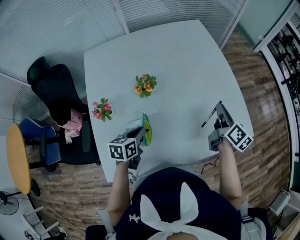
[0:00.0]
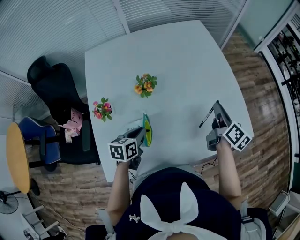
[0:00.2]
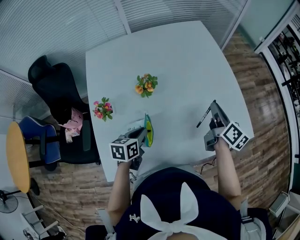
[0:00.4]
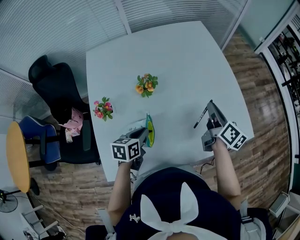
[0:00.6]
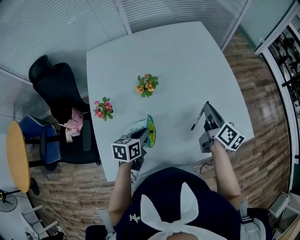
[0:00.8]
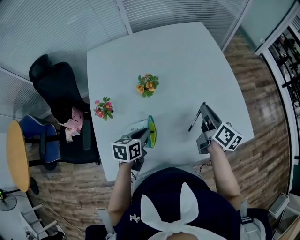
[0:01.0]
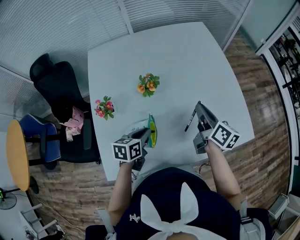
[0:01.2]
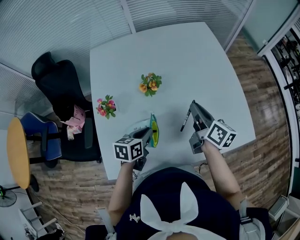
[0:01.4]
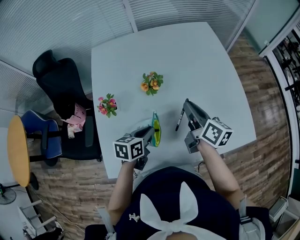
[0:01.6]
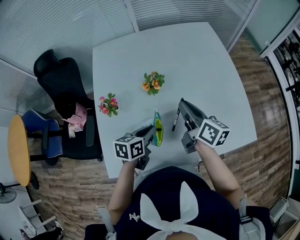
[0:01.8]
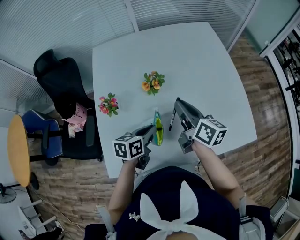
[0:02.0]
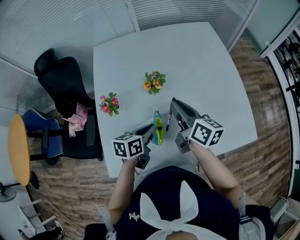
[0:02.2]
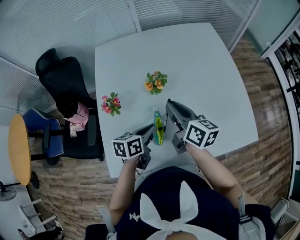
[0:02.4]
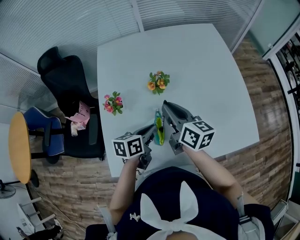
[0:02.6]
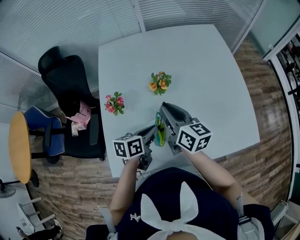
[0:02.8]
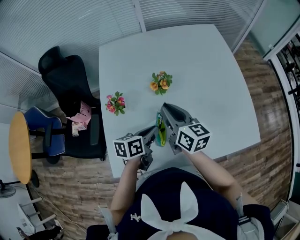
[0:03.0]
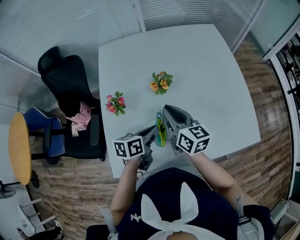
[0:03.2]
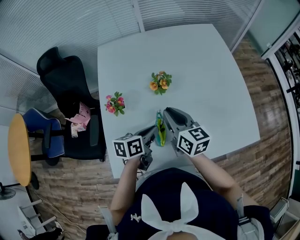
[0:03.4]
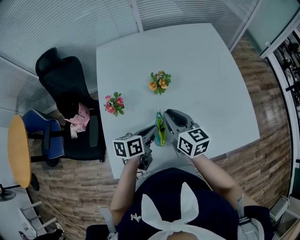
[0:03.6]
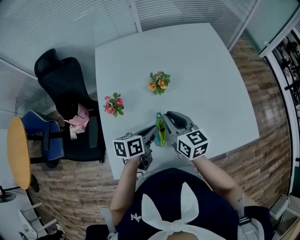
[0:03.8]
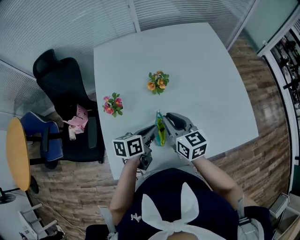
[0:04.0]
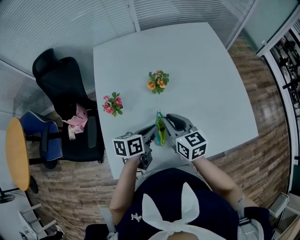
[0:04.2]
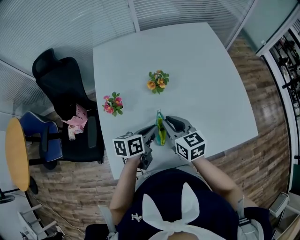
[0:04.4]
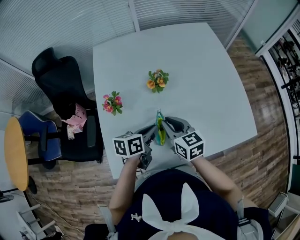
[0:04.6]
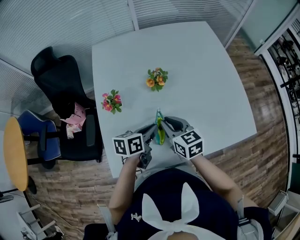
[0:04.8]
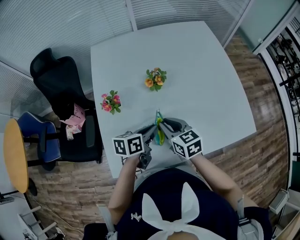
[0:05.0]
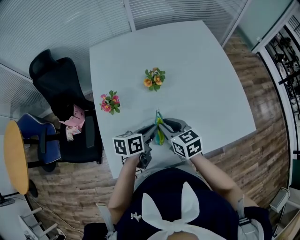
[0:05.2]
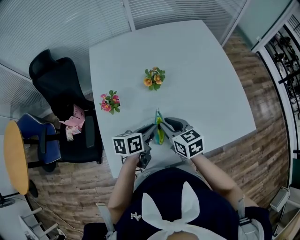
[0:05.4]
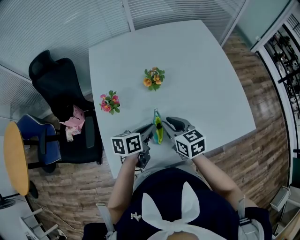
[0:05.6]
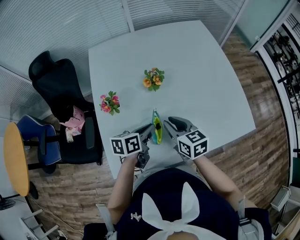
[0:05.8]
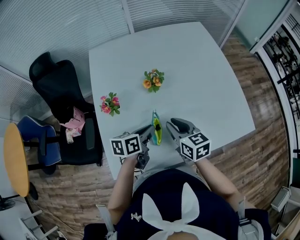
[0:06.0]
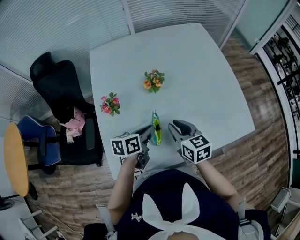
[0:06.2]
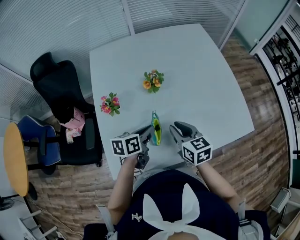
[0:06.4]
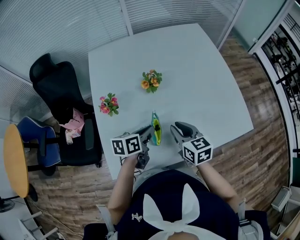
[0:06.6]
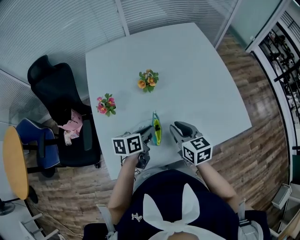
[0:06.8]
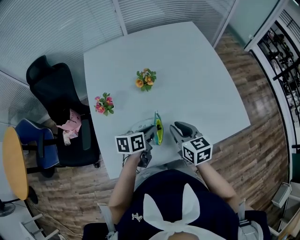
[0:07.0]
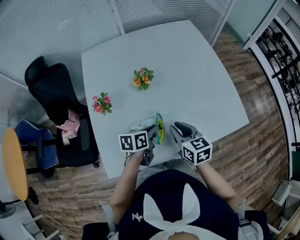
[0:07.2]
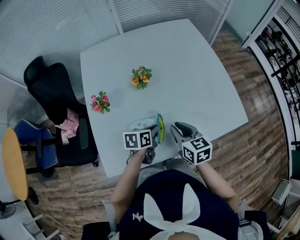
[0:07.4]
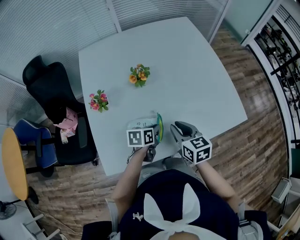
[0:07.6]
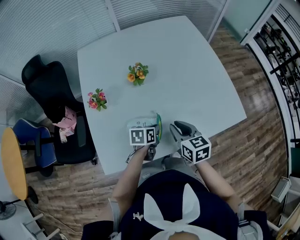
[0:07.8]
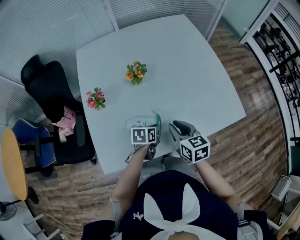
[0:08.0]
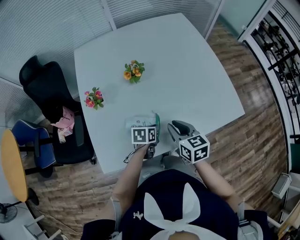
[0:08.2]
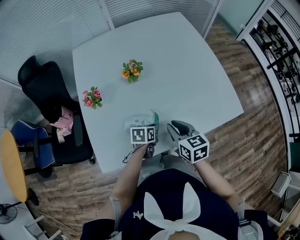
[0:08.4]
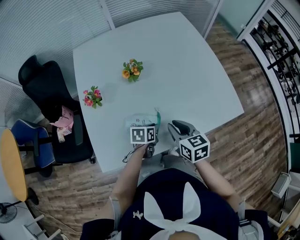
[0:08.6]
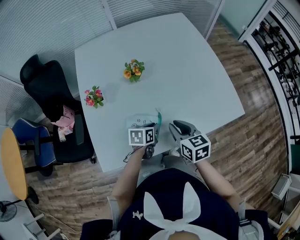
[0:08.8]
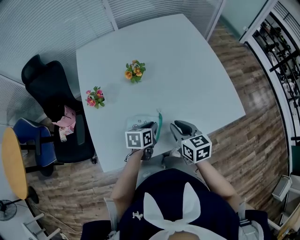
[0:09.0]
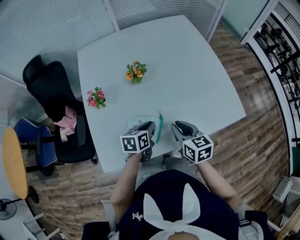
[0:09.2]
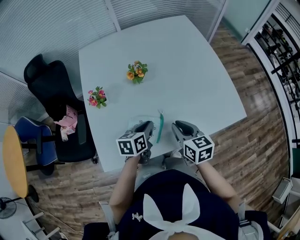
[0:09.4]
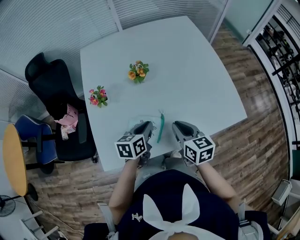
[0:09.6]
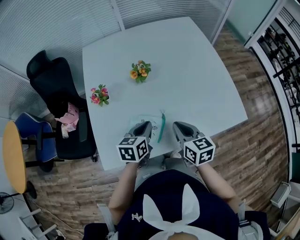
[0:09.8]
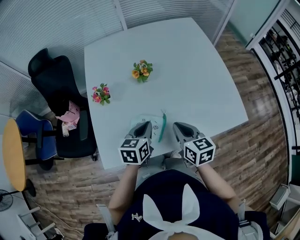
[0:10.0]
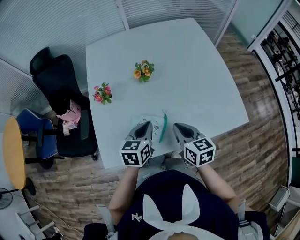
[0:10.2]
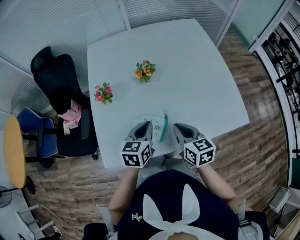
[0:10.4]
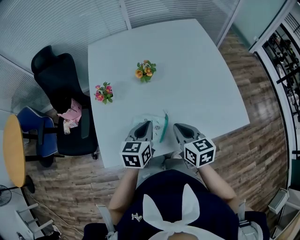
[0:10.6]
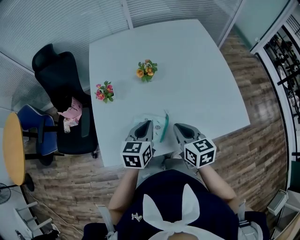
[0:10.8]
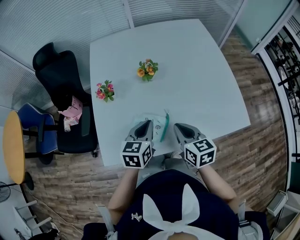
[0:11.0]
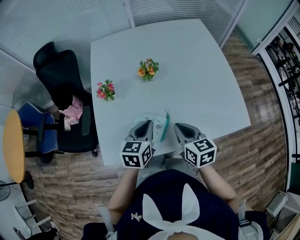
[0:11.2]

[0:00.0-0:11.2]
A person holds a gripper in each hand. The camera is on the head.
0:00.0 to 0:01.6: The right gripper is displaced to the left by approximately 15 cm, and rotates about 20 degrees.
0:01.6 to 0:03.2: The right gripper heads to the left, covering roughly 10 cm, and changes its angle by some 20 degrees.
0:03.2 to 0:04.8: The right gripper heads downward and backward, covering roughly 10 cm.
0:04.8 to 0:06.4: The right gripper shifts roughly 5 cm to the right.
0:06.4 to 0:08.0: The left gripper goes approximately 15 cm downward and to the right. Meanwhile the right gripper goes roughly 5 cm to the right.
0:08.0 to 0:09.6: The left gripper goes about 10 cm upward.
0:09.6 to 0:11.2: The left gripper goes approximately 5 cm upward.

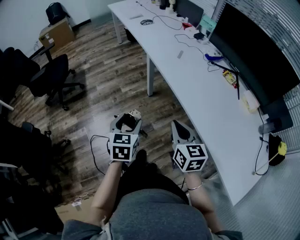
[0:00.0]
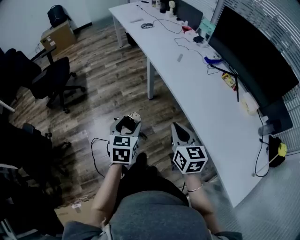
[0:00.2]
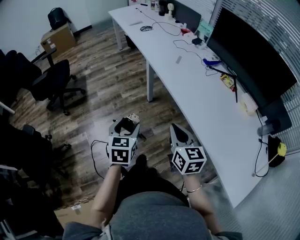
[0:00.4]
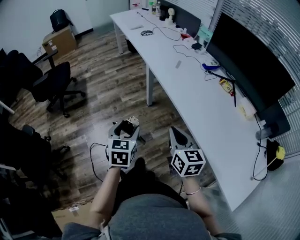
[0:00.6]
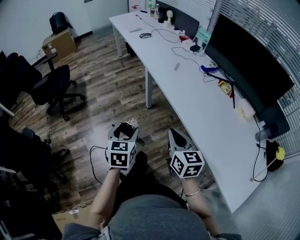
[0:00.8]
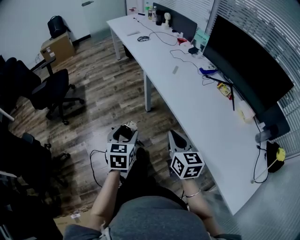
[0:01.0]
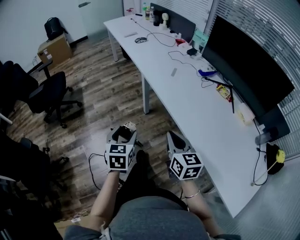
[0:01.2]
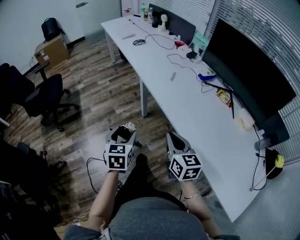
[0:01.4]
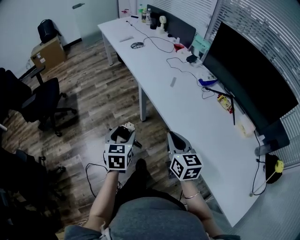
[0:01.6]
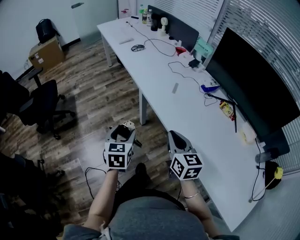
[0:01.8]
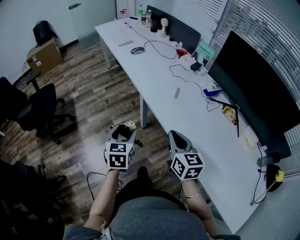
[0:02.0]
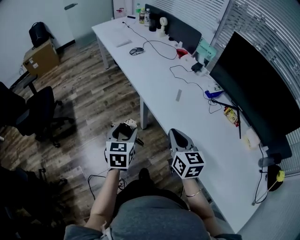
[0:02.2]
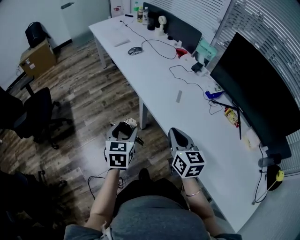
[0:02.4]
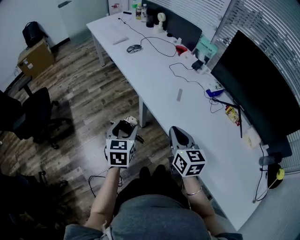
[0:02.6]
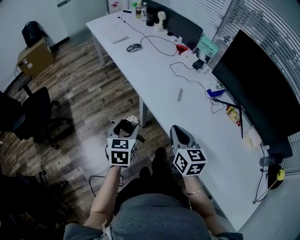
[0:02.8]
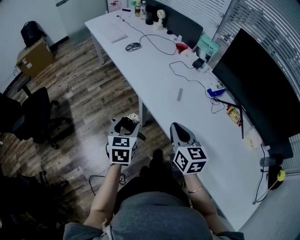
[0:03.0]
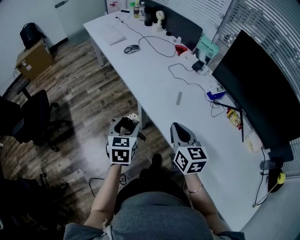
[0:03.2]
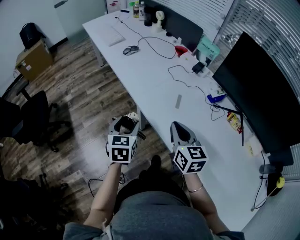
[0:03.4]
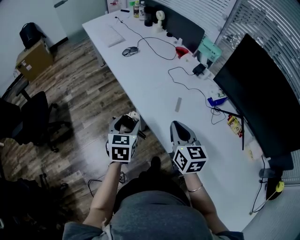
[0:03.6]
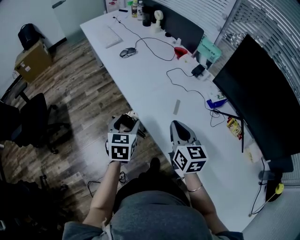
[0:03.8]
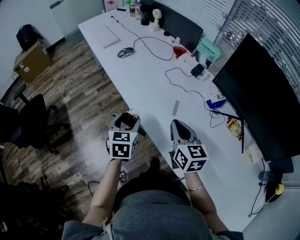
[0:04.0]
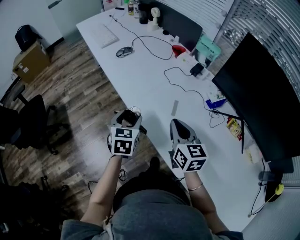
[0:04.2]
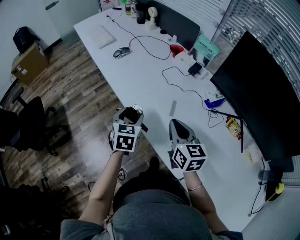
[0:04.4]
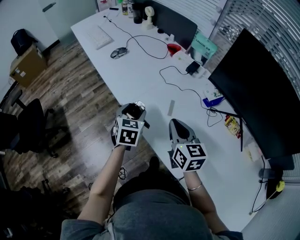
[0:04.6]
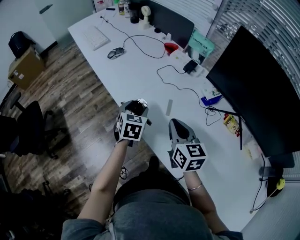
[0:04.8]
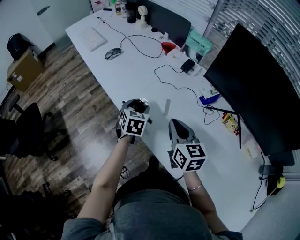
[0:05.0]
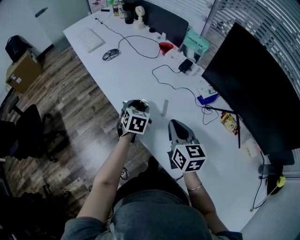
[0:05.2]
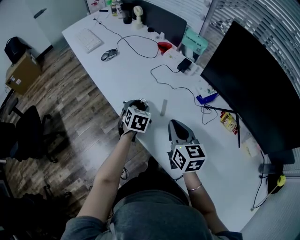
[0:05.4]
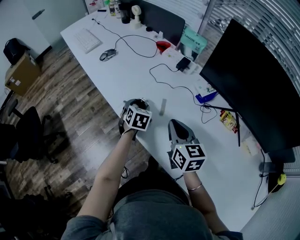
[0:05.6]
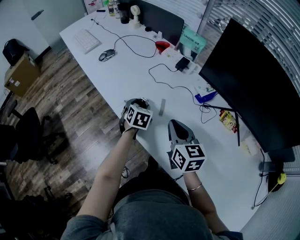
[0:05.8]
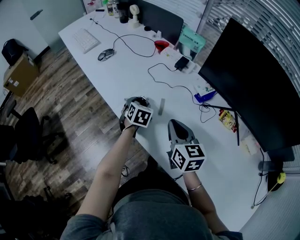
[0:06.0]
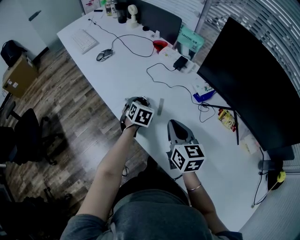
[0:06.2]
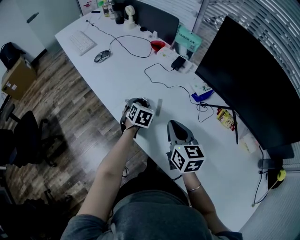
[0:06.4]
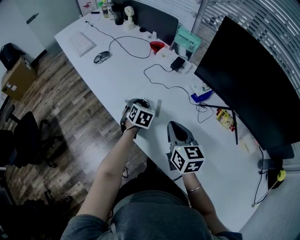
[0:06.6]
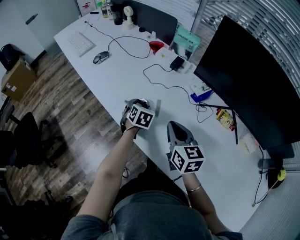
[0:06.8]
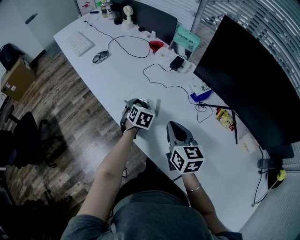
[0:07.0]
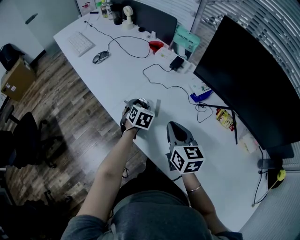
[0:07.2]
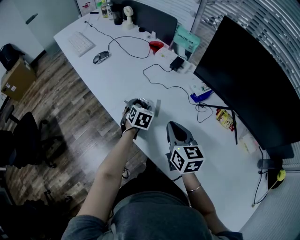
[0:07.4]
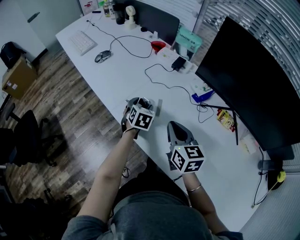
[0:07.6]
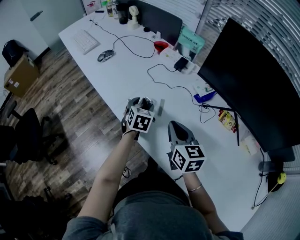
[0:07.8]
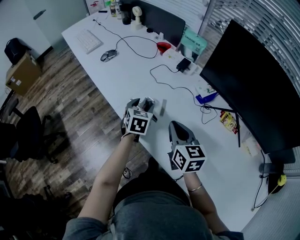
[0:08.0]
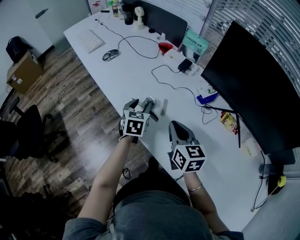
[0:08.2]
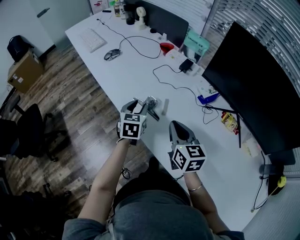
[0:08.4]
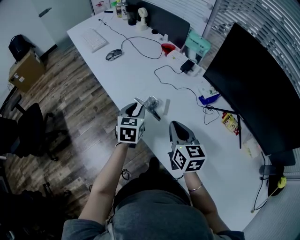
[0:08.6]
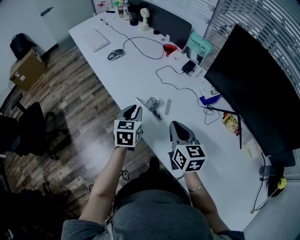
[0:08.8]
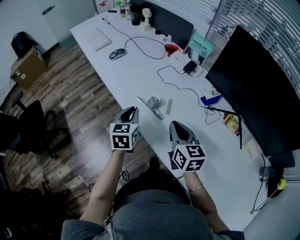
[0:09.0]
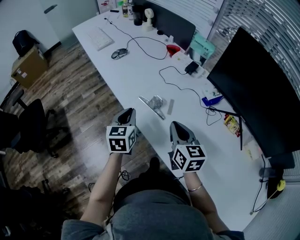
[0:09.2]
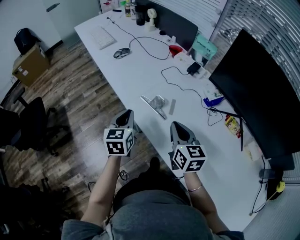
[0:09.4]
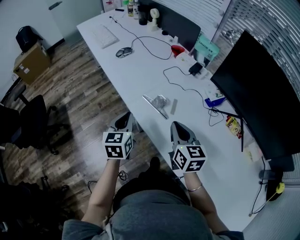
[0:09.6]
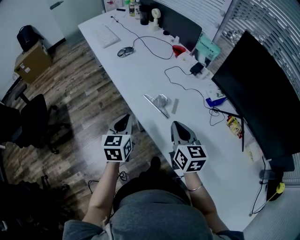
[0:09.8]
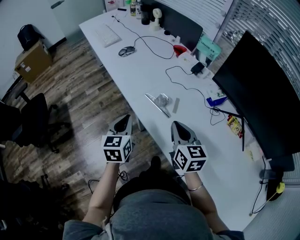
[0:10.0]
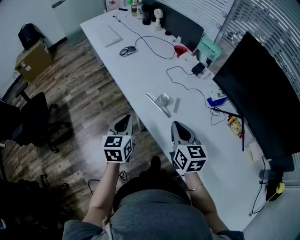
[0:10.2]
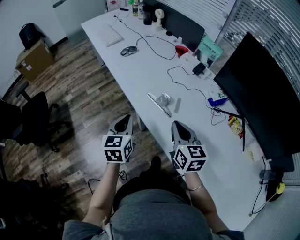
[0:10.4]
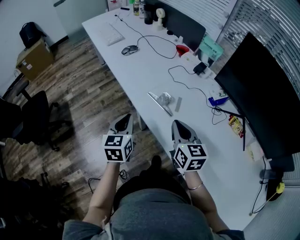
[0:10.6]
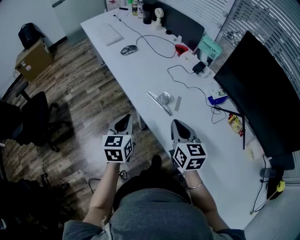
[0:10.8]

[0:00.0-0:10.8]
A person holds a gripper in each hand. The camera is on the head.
0:00.0 to 0:01.6: Both grippers travel together forward, approximately 15 cm.
0:01.6 to 0:03.0: The two grippers go about 20 cm forward.
0:03.0 to 0:04.6: Both grippers move forward and to the right, some 15 cm.
0:04.6 to 0:06.2: The left gripper travels to the right, downward and forward by about 15 cm.
0:06.2 to 0:07.8: The grippers make only small movements.
0:07.8 to 0:09.2: The left gripper is displaced to the left, backward and upward by roughly 15 cm, rotates some 20 degrees, and closes its fingers.
0:09.2 to 0:10.8: The left gripper goes approximately 5 cm backward.

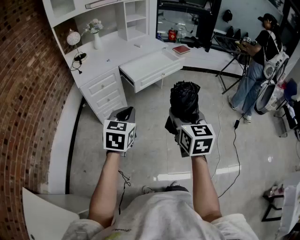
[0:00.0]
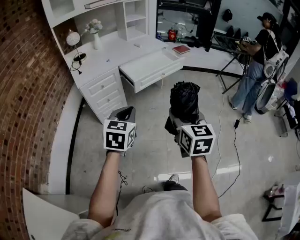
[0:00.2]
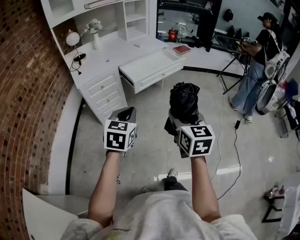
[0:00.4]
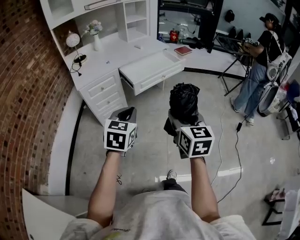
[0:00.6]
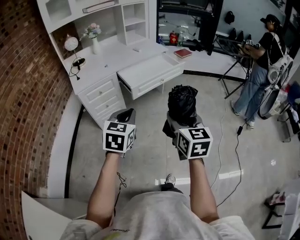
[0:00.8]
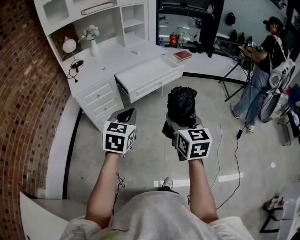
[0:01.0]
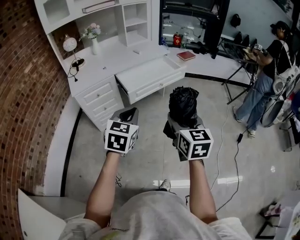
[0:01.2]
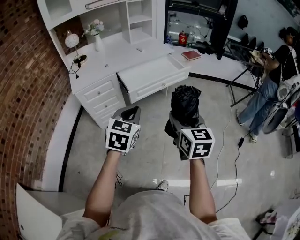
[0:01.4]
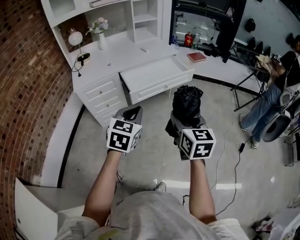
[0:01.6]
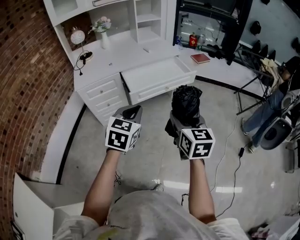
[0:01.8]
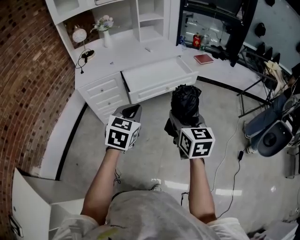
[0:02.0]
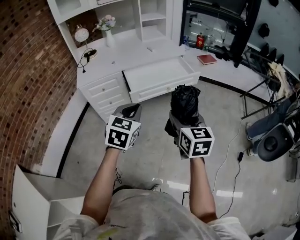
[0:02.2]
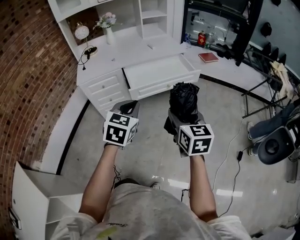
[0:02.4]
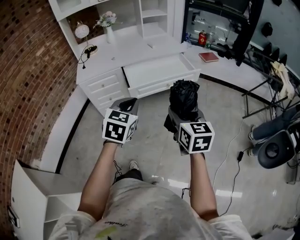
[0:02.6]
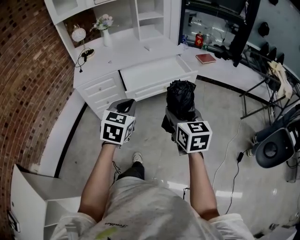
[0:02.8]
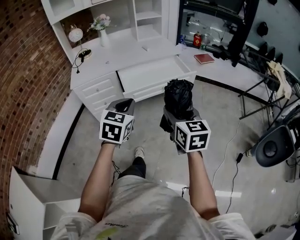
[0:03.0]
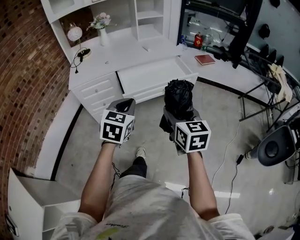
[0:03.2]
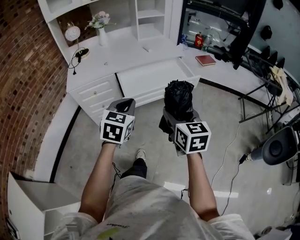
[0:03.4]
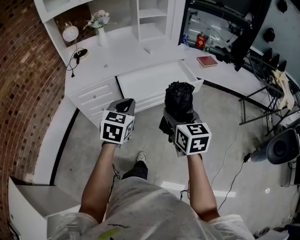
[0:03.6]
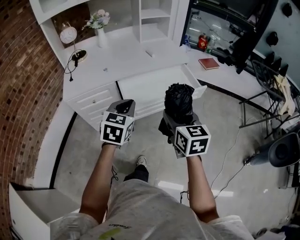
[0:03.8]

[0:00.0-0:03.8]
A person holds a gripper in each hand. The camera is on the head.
0:00.0 to 0:01.2: Both grippers move forward and to the right, some 15 cm.
0:01.2 to 0:02.6: The two grippers go roughly 15 cm forward and to the right.
0:02.6 to 0:03.8: The two grippers go approximately 20 cm forward.
